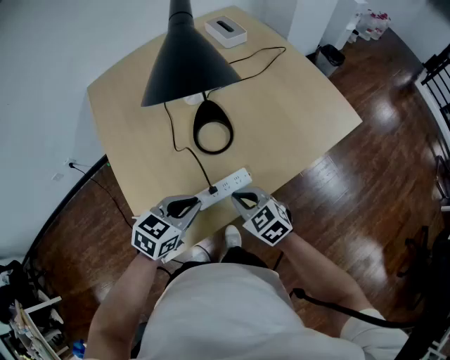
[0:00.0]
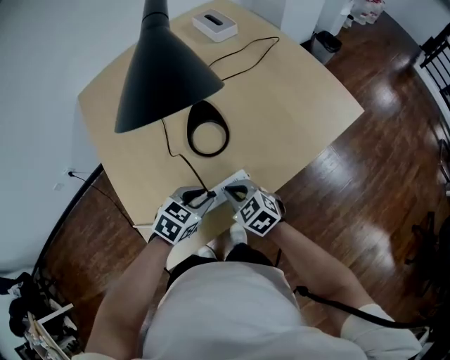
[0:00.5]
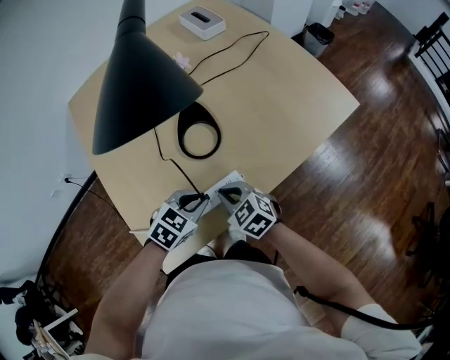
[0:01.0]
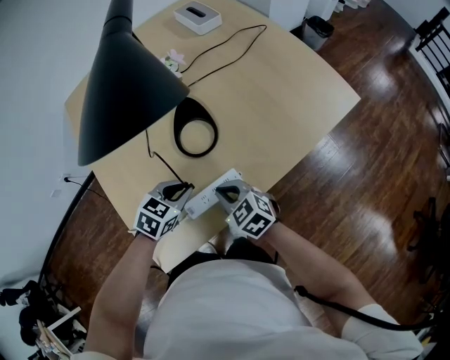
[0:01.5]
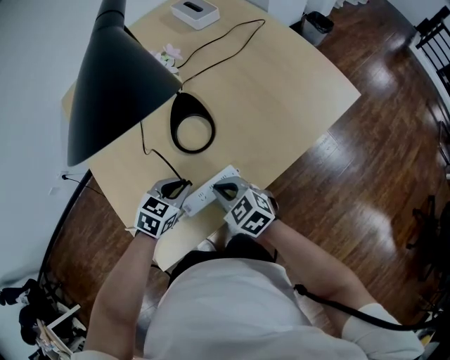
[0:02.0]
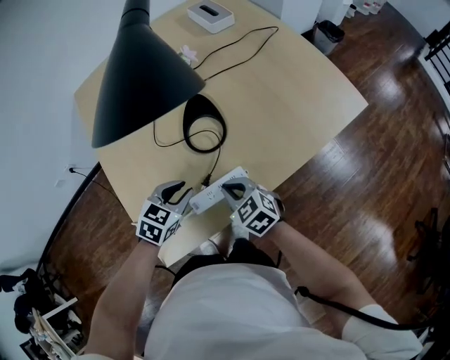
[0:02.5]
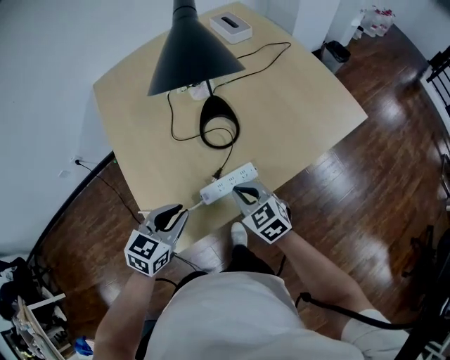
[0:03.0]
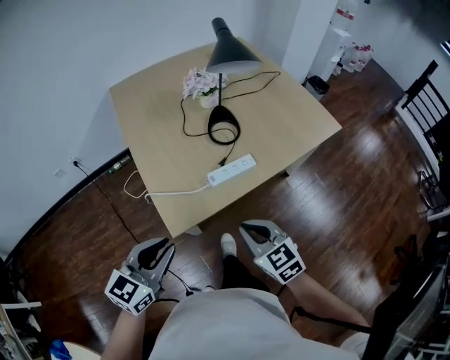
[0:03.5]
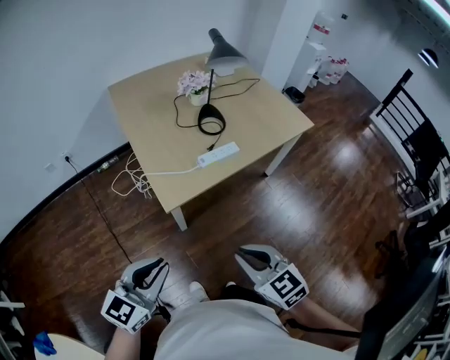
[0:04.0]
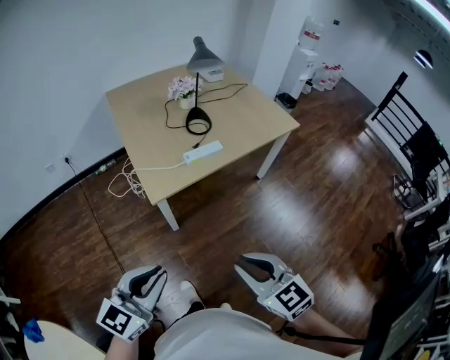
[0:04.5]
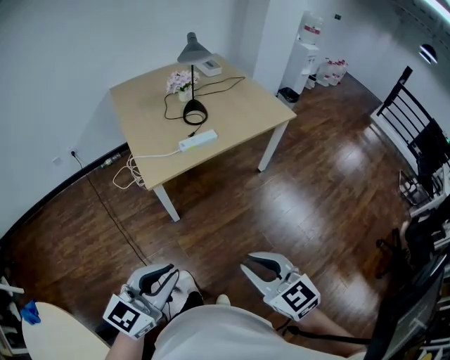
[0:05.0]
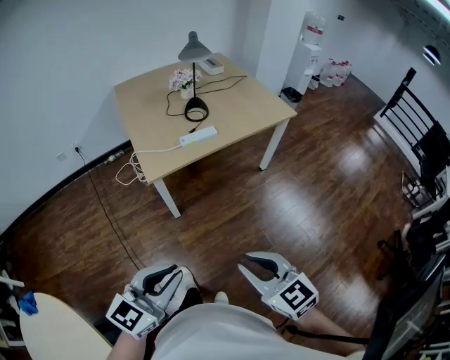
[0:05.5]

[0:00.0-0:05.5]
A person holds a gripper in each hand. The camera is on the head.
0:00.0 to 0:02.0: The right gripper ends up approximately 5 cm from where it was, while the left gripper is displaced downward and forward by roughly 15 cm.
0:02.0 to 0:03.5: The right gripper moves backward and upward, some 25 cm. The left gripper goes approximately 40 cm backward, upward and to the left, and tips its fingers upward by roughly 30 degrees.
0:03.5 to 0:05.5: The two grippers go roughly 40 cm backward.

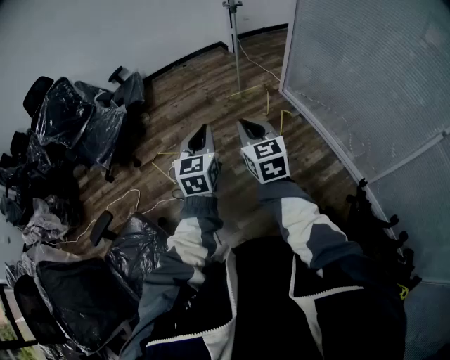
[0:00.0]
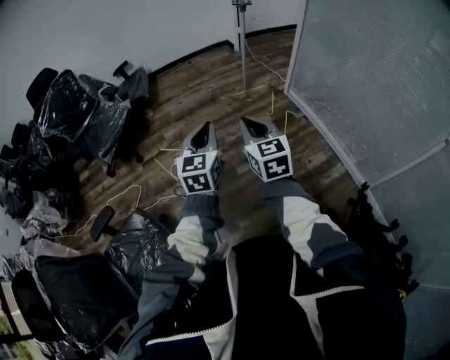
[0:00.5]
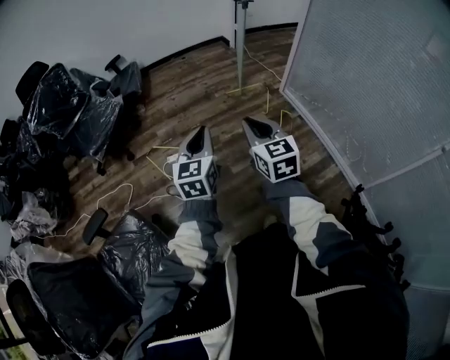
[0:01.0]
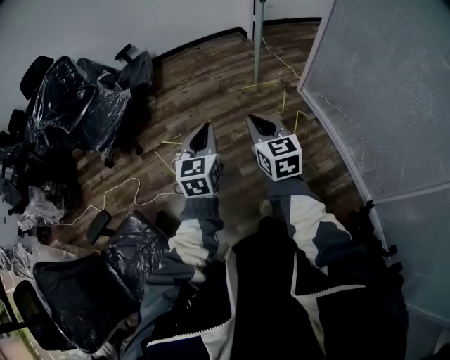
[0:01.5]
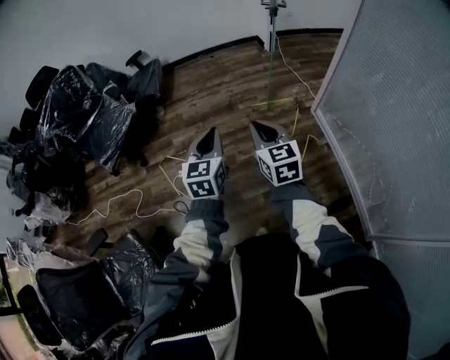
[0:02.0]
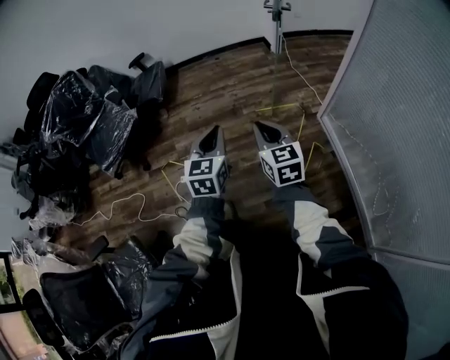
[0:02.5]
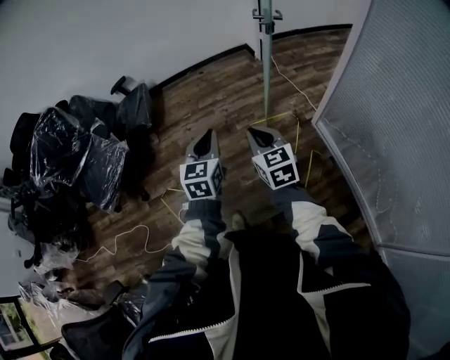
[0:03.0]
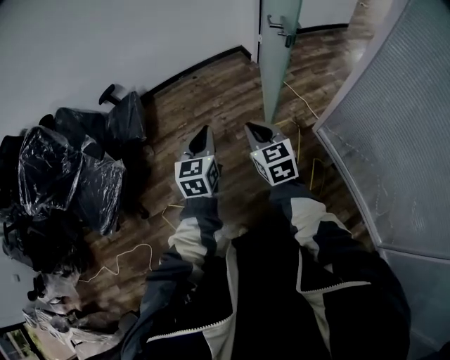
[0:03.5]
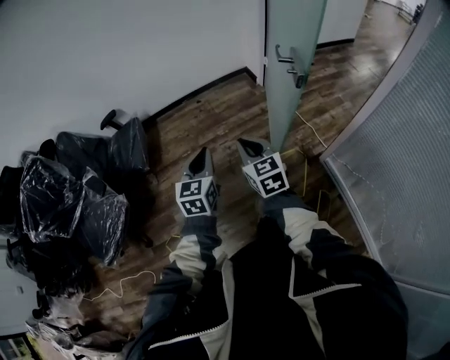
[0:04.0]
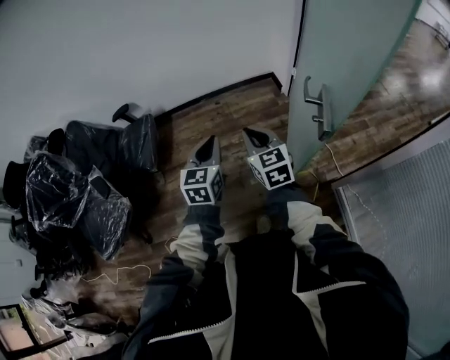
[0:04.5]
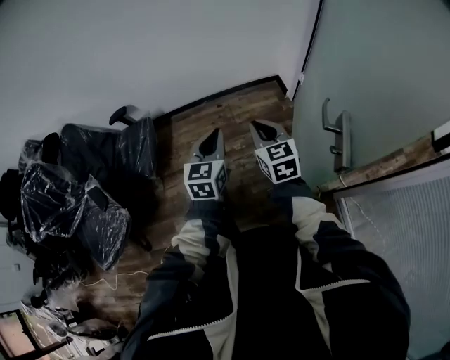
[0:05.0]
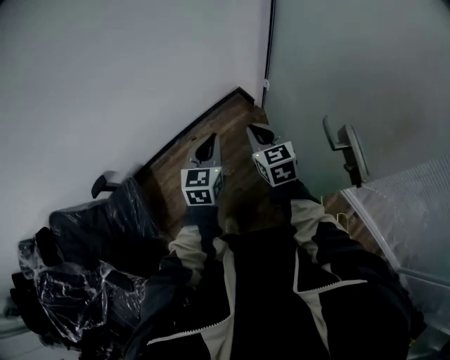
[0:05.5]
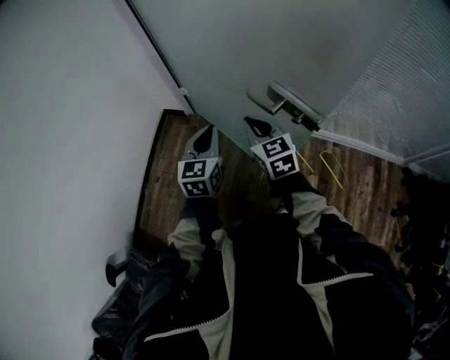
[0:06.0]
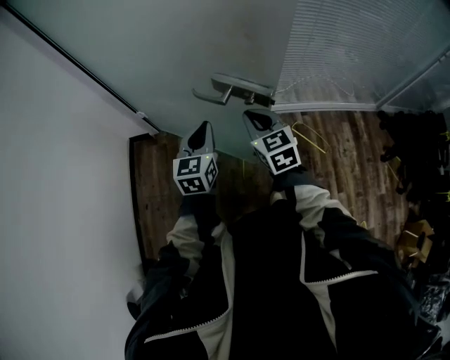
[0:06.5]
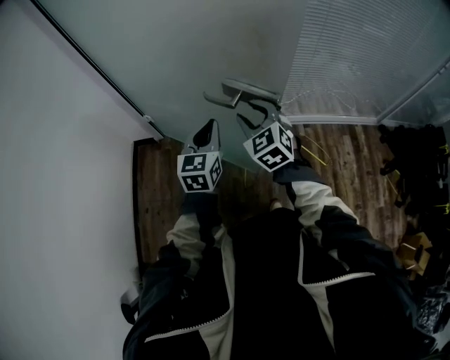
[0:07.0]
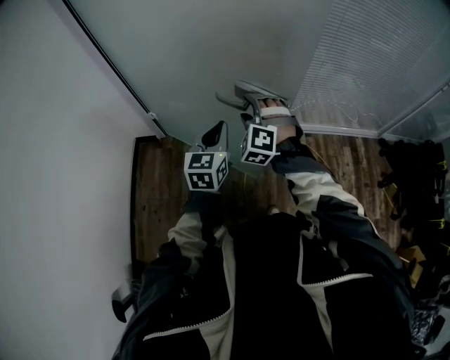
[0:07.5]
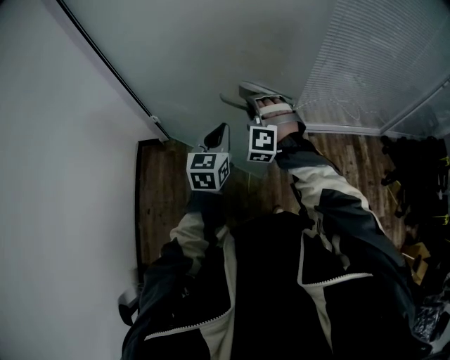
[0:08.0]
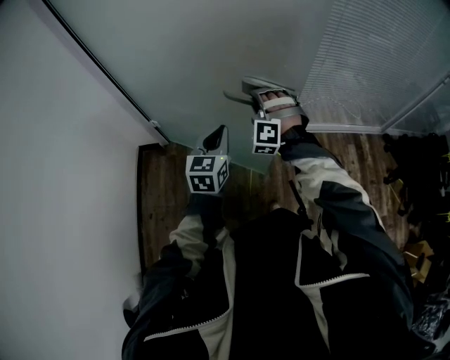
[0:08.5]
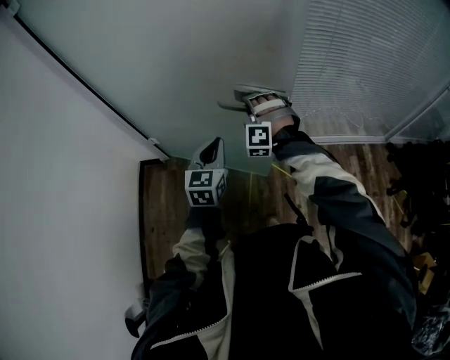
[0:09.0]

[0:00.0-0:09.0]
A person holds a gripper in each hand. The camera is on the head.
0:00.0 to 0:02.0: Both grippers move forward, about 25 cm.
0:02.0 to 0:04.5: The pair of grippers is taken forward, approximately 70 cm.
0:04.5 to 0:07.0: The left gripper changes place by some 25 cm, and changes its angle by approximately 80 degrees, while the right gripper moves roughly 20 cm, changes its angle by approximately 70 degrees, and opens up.
0:07.0 to 0:09.0: The right gripper goes some 20 cm forward, rolls counterclockwise, seen from behind, by roughly 60 degrees, and opens, then closes once more; the left gripper travels forward by about 10 cm.

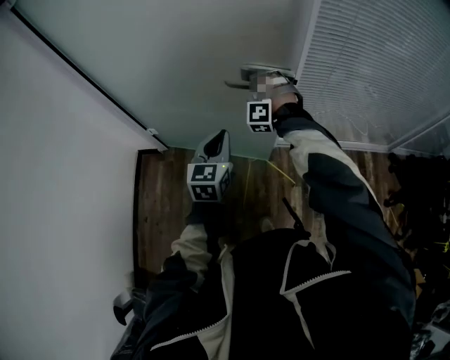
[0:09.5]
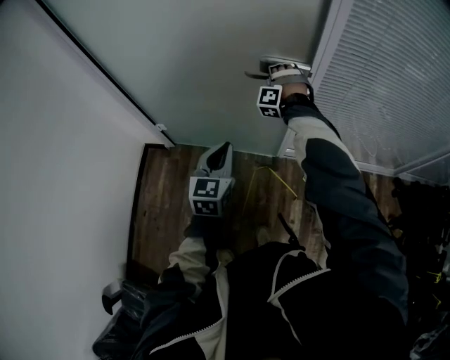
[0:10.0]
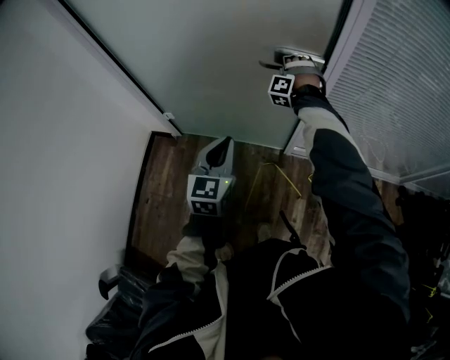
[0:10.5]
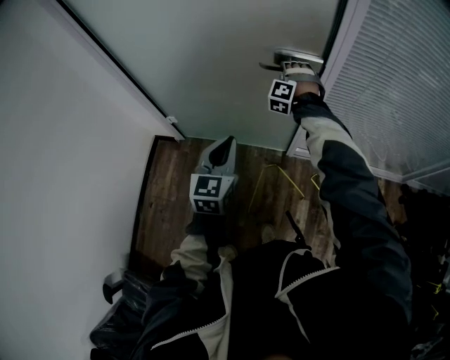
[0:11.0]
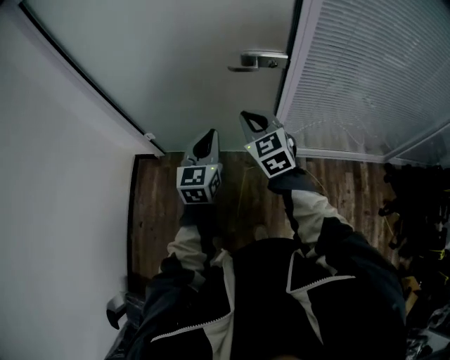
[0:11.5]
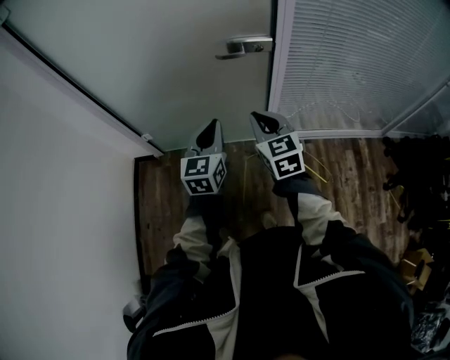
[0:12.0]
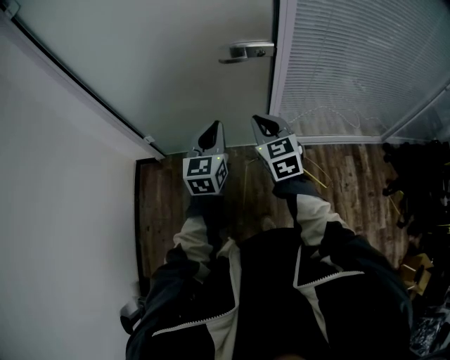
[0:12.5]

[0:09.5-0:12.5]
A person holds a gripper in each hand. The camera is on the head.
0:09.5 to 0:11.0: The right gripper travels forward by roughly 10 cm.
0:11.0 to 0:12.5: The right gripper goes approximately 30 cm backward, twists about 80 degrees clockwise, seen from behind, and closes its fingers.

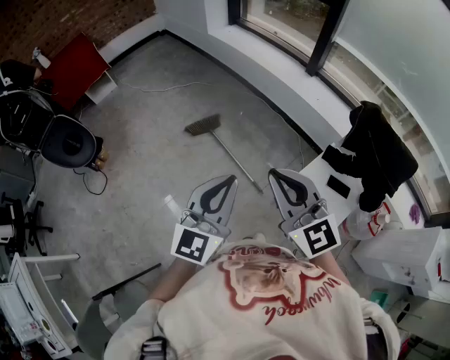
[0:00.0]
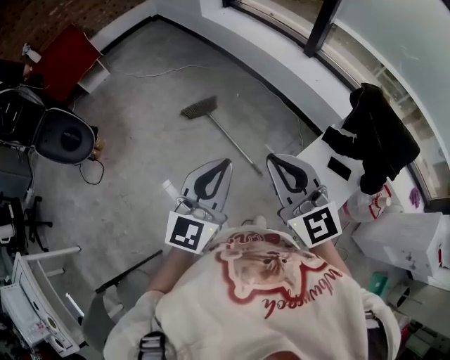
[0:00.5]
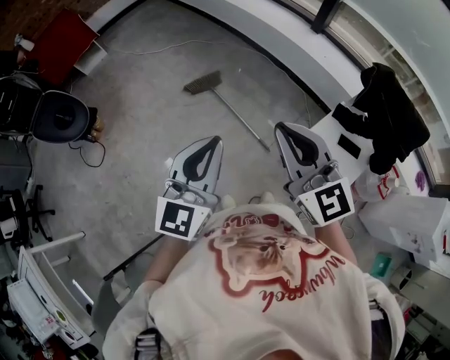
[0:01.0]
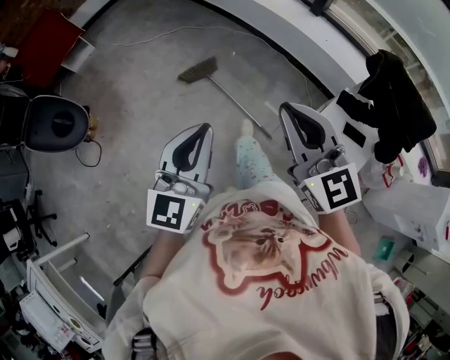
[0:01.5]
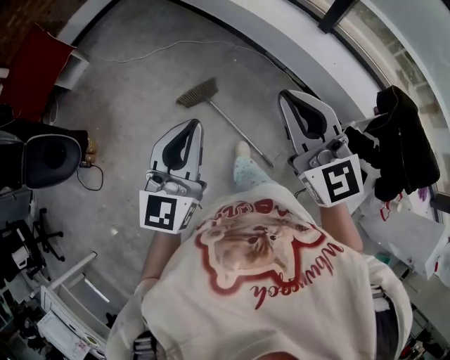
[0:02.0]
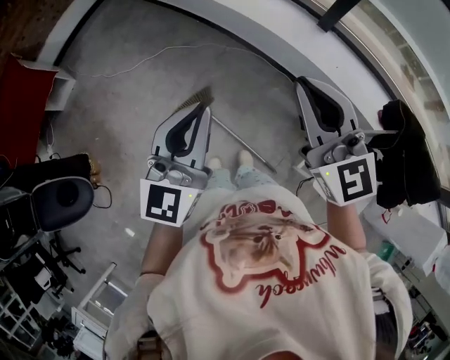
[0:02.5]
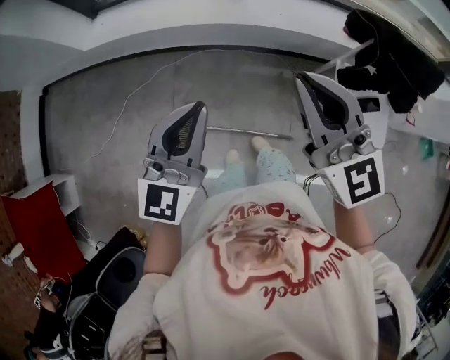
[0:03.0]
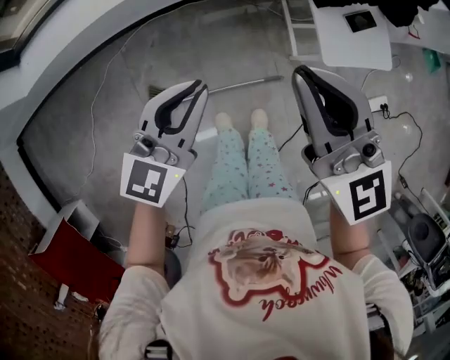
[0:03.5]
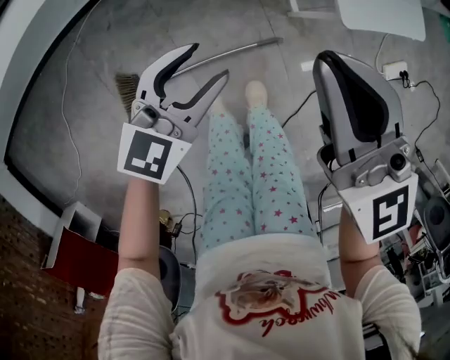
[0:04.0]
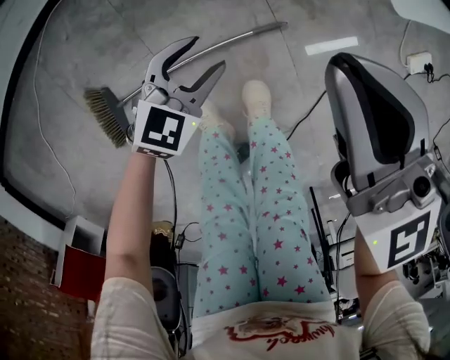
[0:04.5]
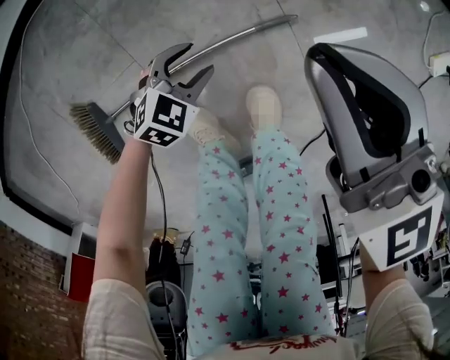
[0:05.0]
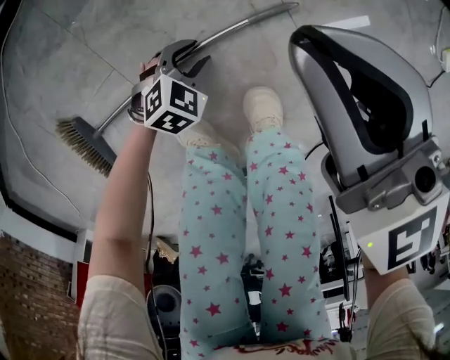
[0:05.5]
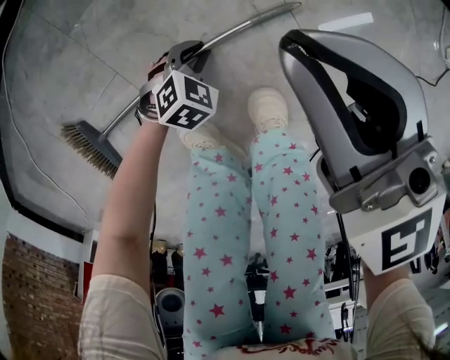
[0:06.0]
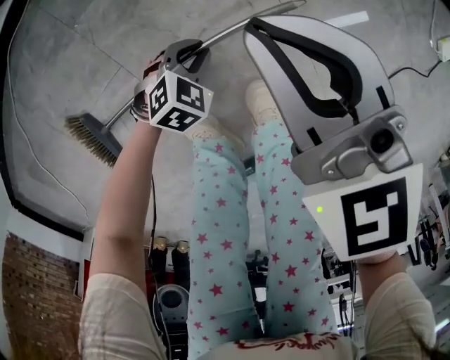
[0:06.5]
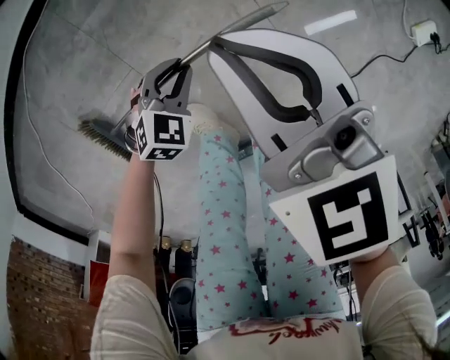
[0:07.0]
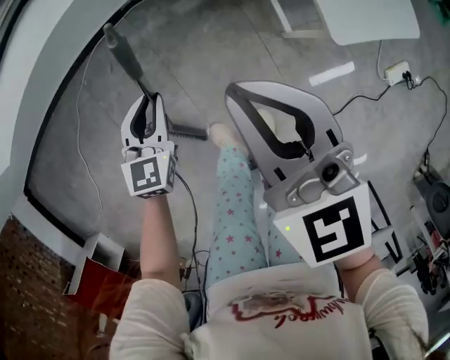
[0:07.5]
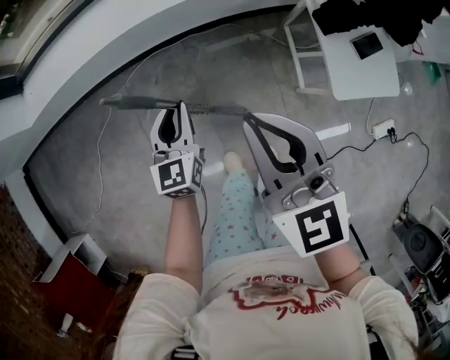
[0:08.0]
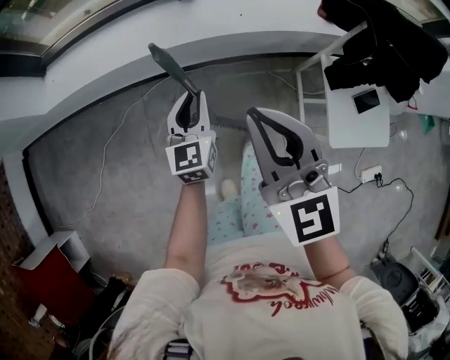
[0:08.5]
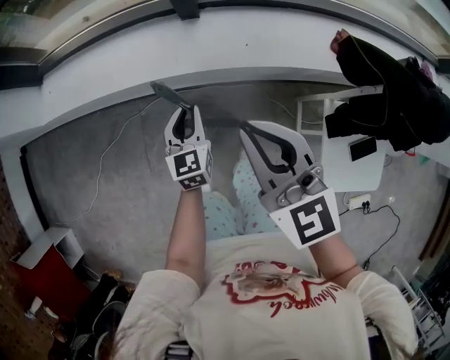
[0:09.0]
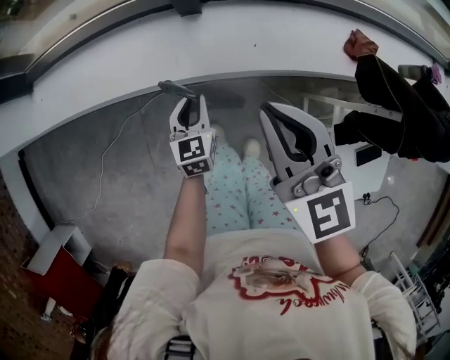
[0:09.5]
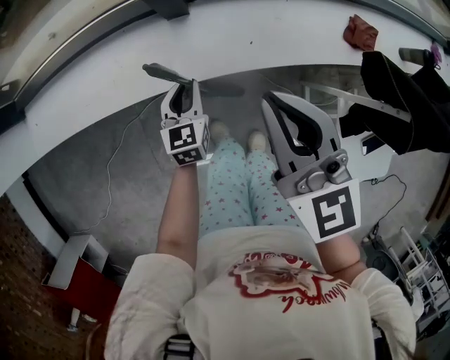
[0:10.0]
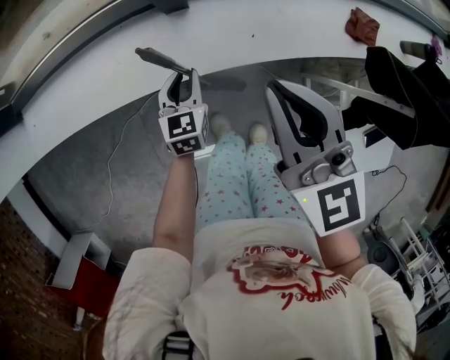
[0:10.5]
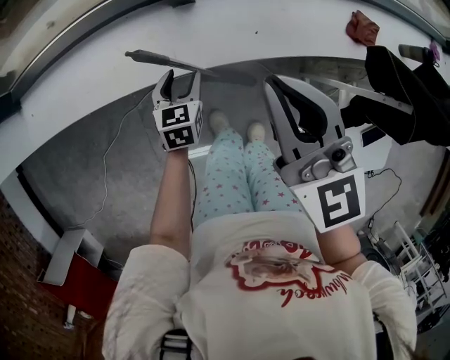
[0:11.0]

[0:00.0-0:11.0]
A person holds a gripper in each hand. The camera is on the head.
0:00.0 to 0:02.0: Both grippers move forward, about 30 cm.
0:02.0 to 0:03.5: The right gripper changes place by roughly 20 cm, and turns by some 60 degrees. The left gripper ends up about 35 cm from where it was, and turns by approximately 70 degrees.
0:03.5 to 0:05.5: Both grippers move downward, some 70 cm. The left gripper tips its fingers downward by roughly 40 degrees, and opens.
0:05.5 to 0:07.5: The two grippers go some 40 cm upward. The left gripper rotates roughly 50 degrees, and closes its fingers.
0:07.5 to 0:09.0: The two grippers go roughly 30 cm forward and upward. The right gripper swivels approximately 20 degrees, while the left gripper turns by roughly 30 degrees.
0:09.0 to 0:11.0: The right gripper heads forward, covering roughly 15 cm; the left gripper is displaced forward and downward by roughly 20 cm, changes its angle by about 20 degrees, and opens.
